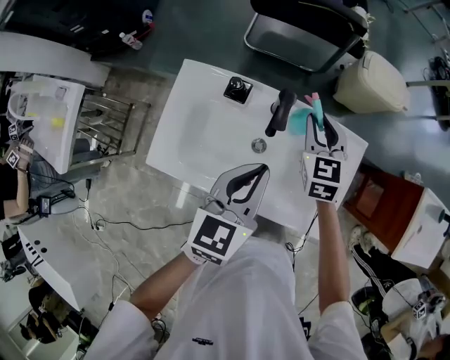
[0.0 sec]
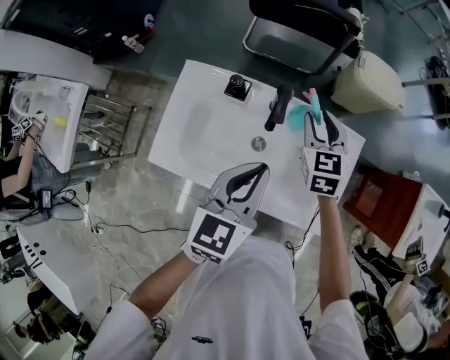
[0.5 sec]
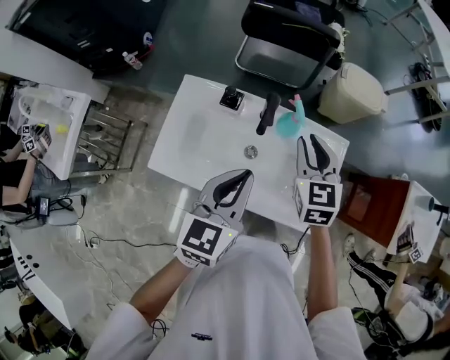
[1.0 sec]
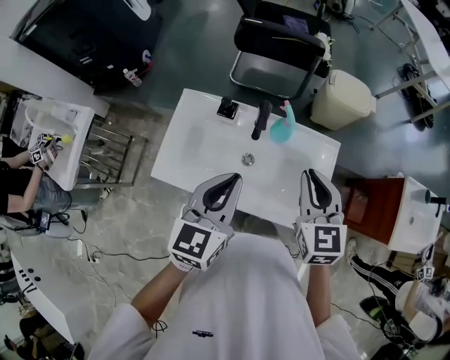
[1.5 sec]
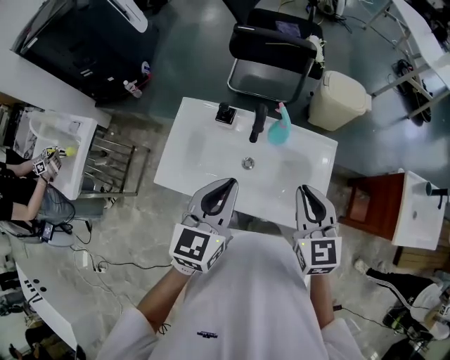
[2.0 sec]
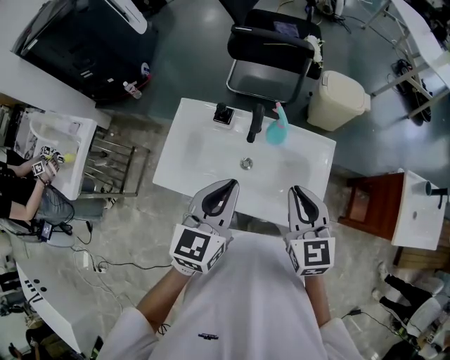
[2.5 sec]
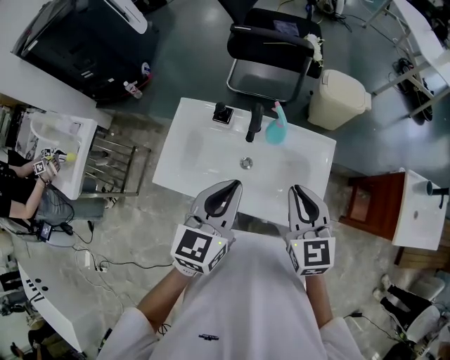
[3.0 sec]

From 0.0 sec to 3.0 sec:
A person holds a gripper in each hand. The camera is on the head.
From 0.0 sec to 1.5 sec: The right gripper heads backward and upward, covering approximately 25 cm. The left gripper is displaced upward and backward by approximately 10 cm.
From 1.5 sec to 3.0 sec: The grippers stay close to where they were, moving slightly.

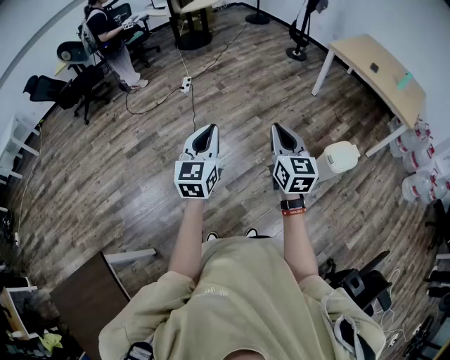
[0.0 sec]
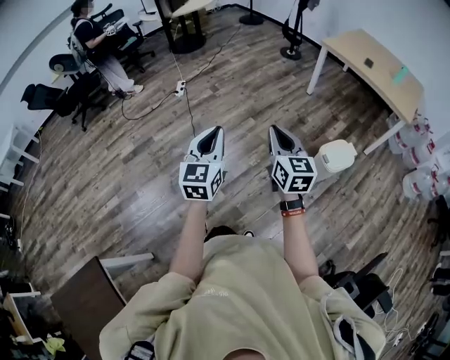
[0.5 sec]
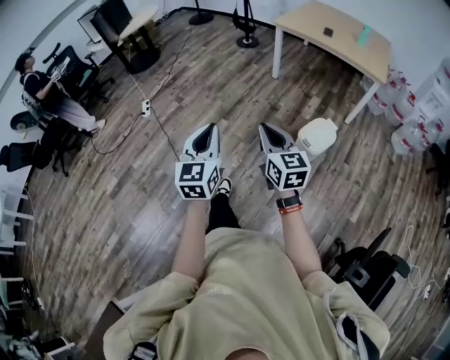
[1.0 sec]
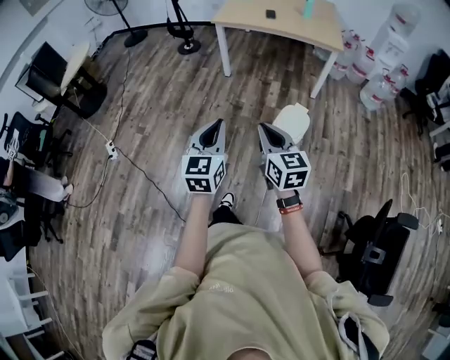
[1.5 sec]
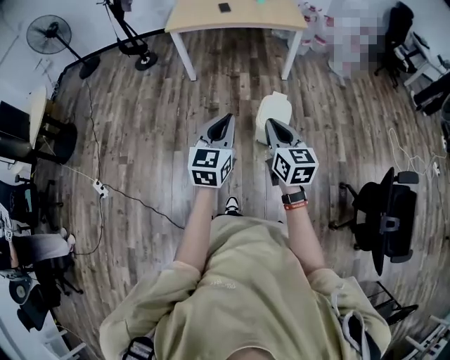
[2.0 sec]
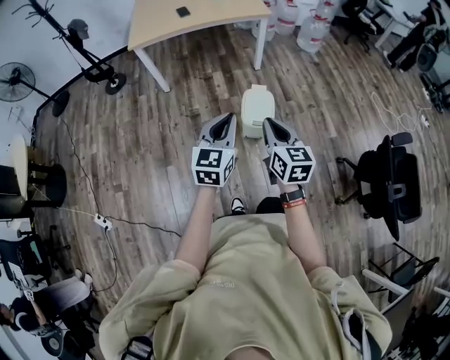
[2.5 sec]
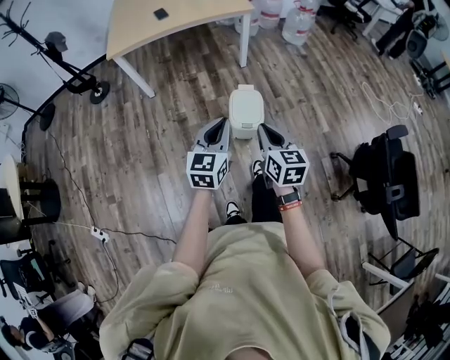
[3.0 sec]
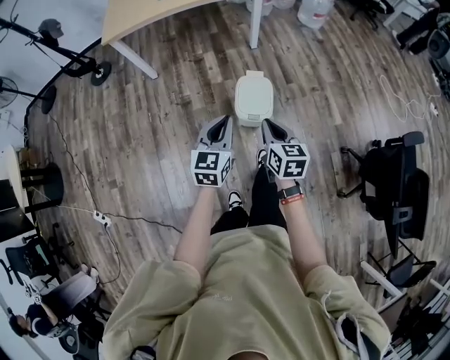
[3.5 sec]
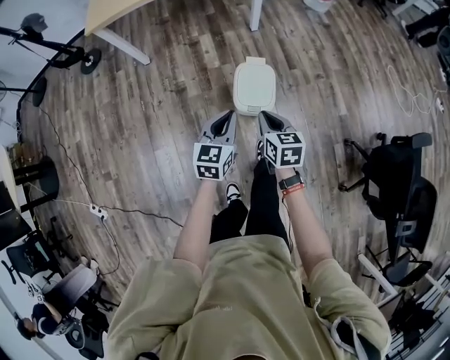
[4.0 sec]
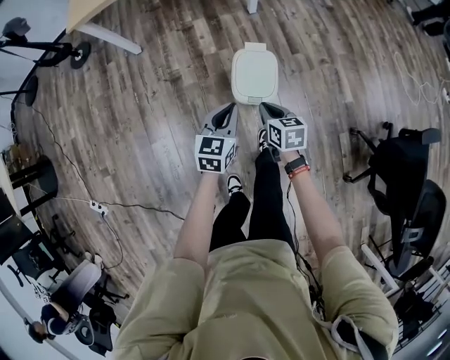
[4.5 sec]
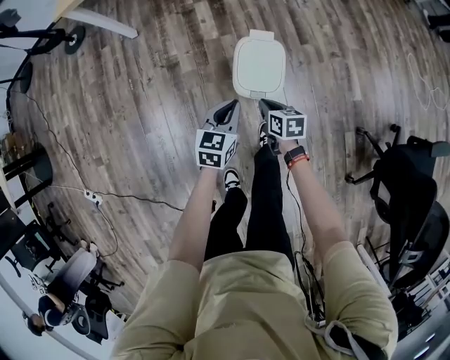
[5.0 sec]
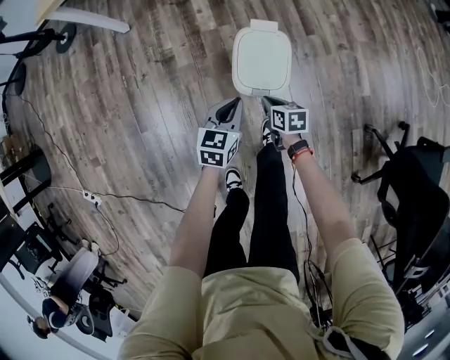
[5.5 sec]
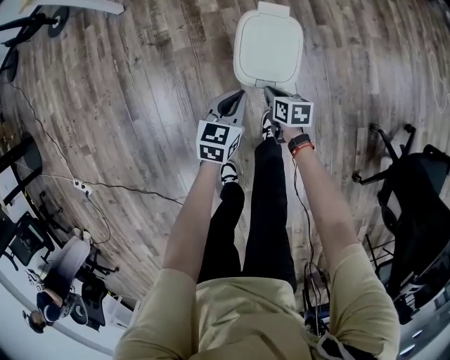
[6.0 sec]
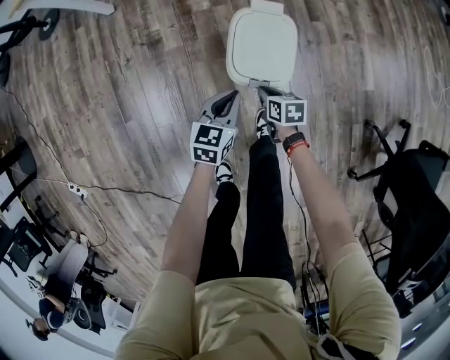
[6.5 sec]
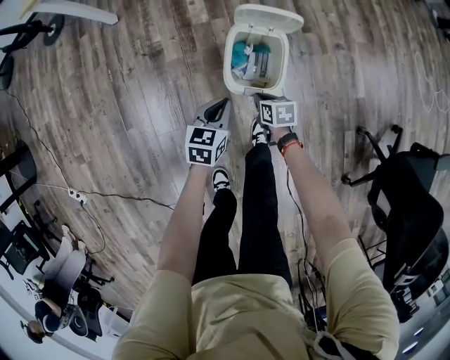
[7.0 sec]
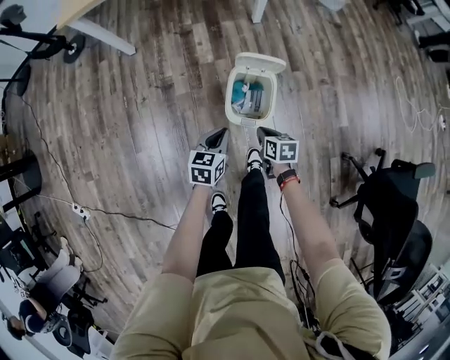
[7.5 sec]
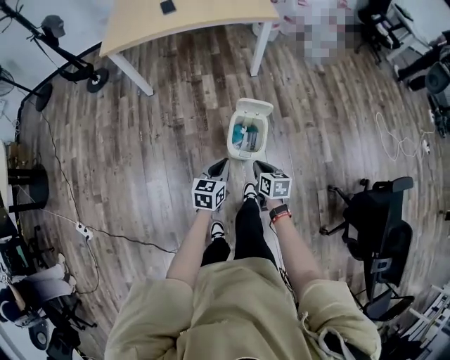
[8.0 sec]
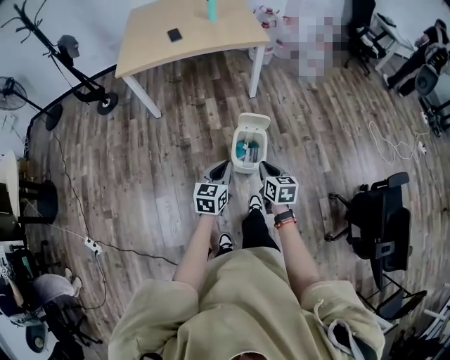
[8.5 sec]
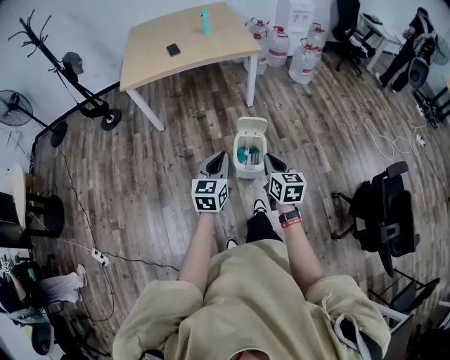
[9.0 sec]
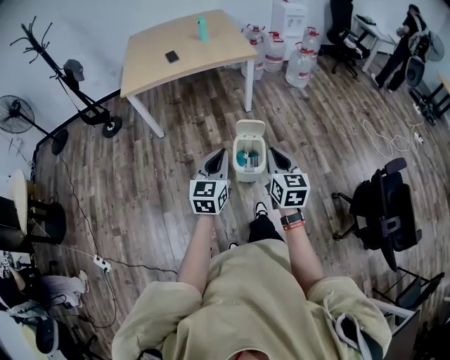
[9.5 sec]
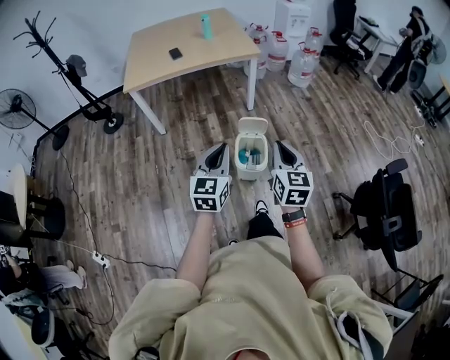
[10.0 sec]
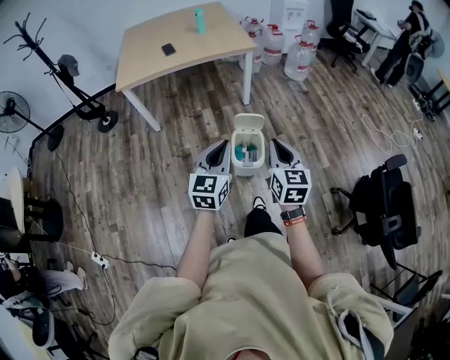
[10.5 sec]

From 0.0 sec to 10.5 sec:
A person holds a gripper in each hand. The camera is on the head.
From 0.0 sec to 2.0 sec: The pair of grippers is taken approximately 50 cm. The left gripper rotates roughly 60 degrees. Meanwhile the right gripper swivels approximately 50 degrees.
From 2.0 sec to 4.0 sec: The two grippers go some 40 cm downward and forward. The left gripper swivels roughly 20 degrees, while the right gripper changes its angle by about 30 degrees.
From 4.0 sec to 6.5 sec: The two grippers go roughly 50 cm downward. The right gripper swivels some 30 degrees.
From 6.5 sec to 8.5 sec: Both grippers travel together upward, about 60 cm. The right gripper changes its angle by about 30 degrees.
From 8.5 sec to 10.5 sec: Both grippers travel together upward and backward, approximately 20 cm. The right gripper turns by approximately 30 degrees.

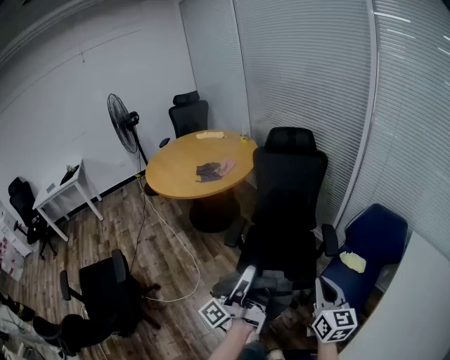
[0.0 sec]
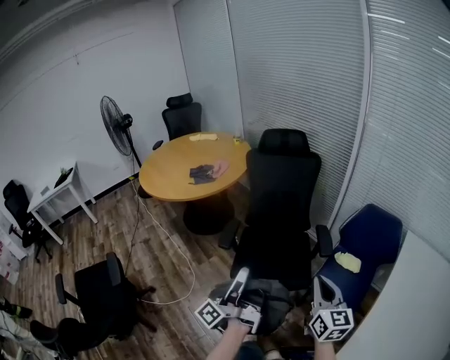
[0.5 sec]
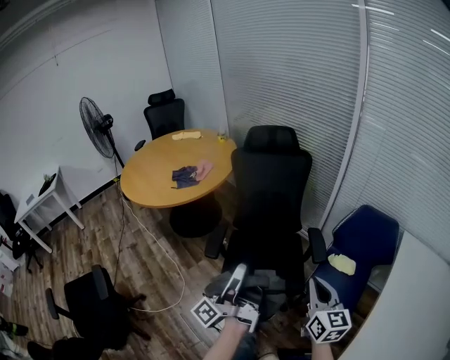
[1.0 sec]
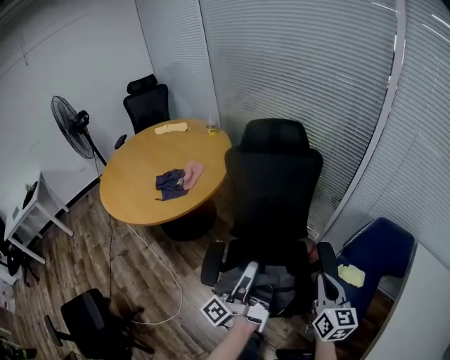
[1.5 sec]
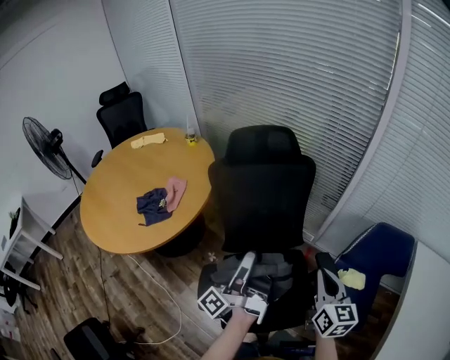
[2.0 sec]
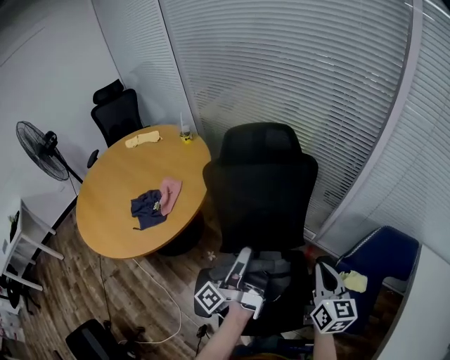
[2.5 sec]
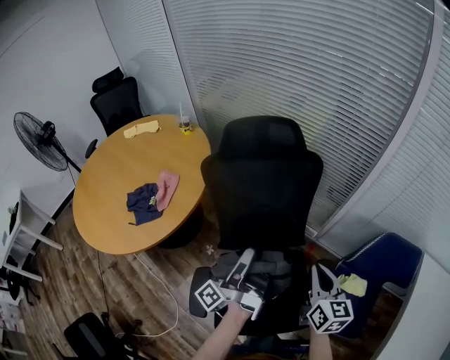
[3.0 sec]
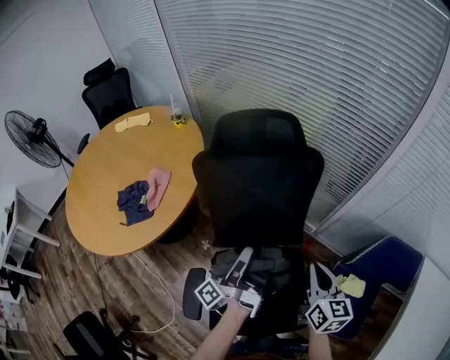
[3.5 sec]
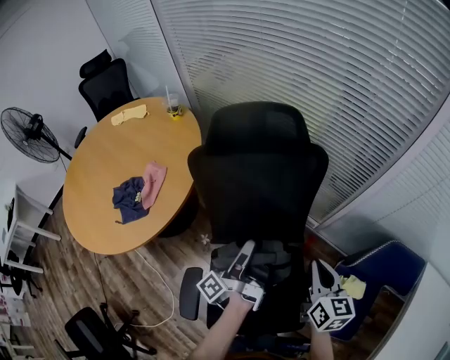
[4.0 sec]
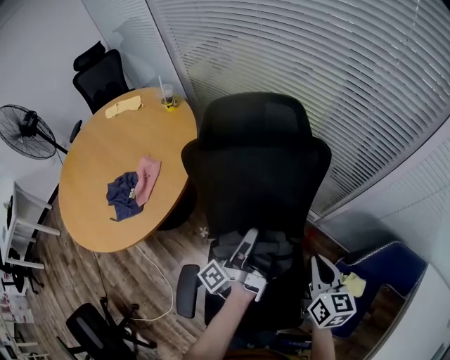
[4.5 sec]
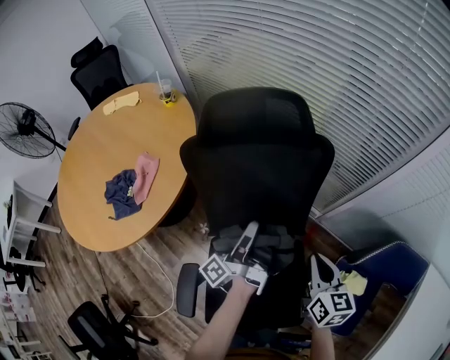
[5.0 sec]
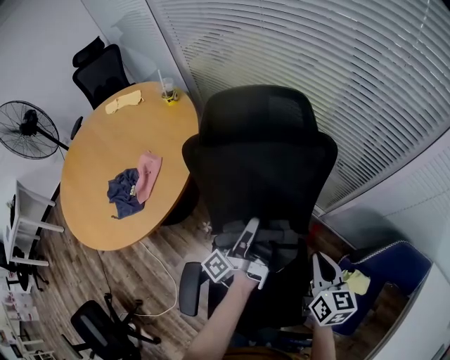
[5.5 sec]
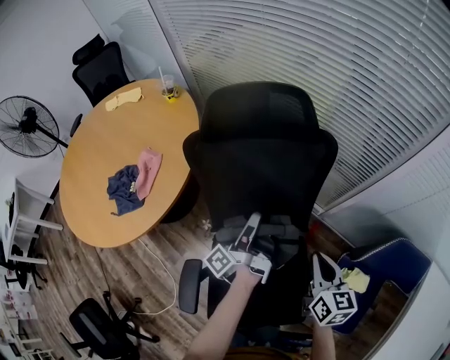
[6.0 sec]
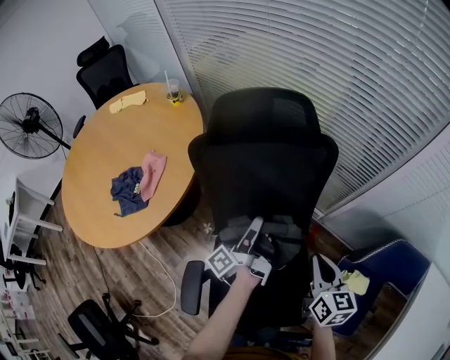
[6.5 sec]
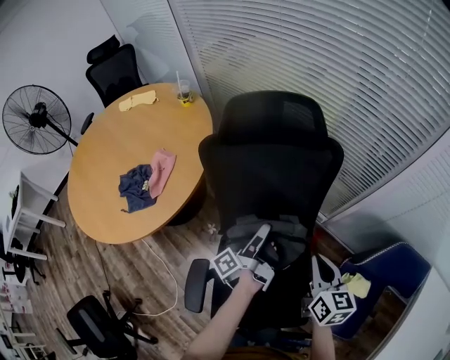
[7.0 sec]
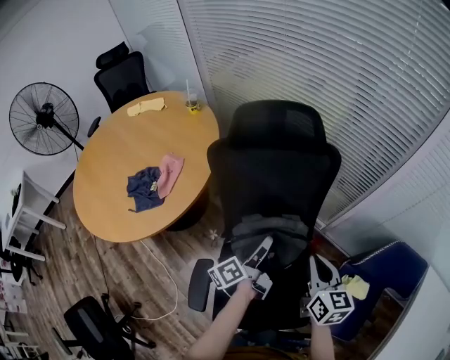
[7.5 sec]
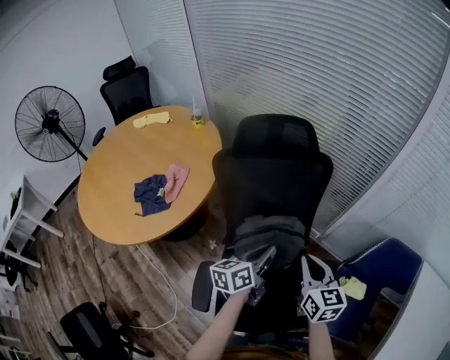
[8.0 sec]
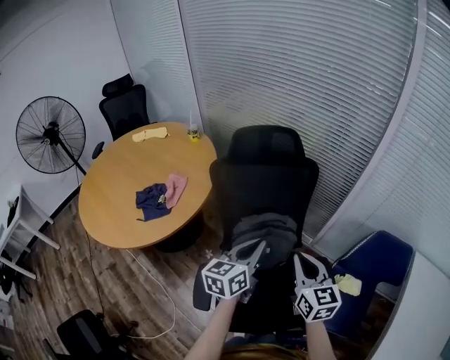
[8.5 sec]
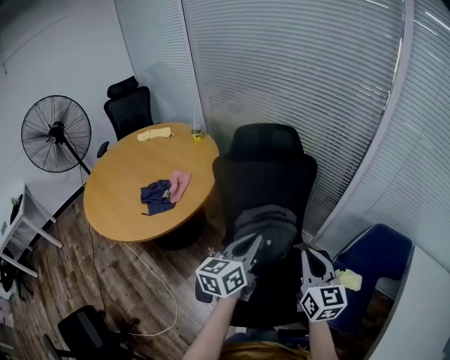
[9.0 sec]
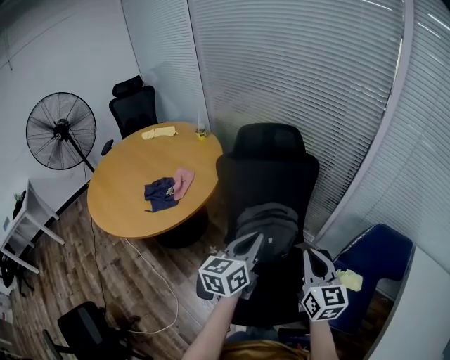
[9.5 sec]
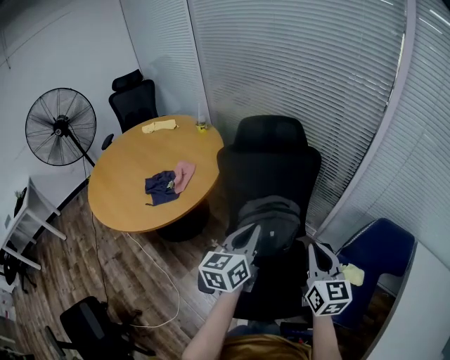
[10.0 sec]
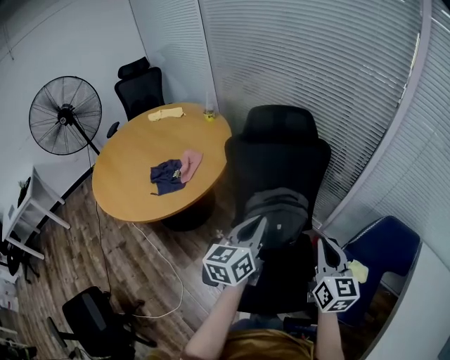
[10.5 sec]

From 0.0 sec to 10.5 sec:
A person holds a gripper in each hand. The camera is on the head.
From 0.0 sec to 2.0 sec: The right gripper changes place by roughly 40 cm.
From 2.0 sec to 4.0 sec: The right gripper shifts by some 20 cm.
From 6.5 sec to 8.5 sec: The right gripper changes place by about 20 cm.
From 8.5 sec to 10.5 sec: The right gripper ends up roughly 5 cm from where it was.

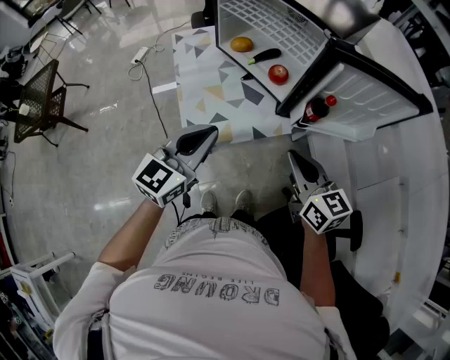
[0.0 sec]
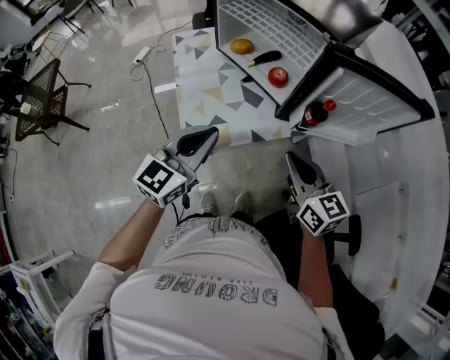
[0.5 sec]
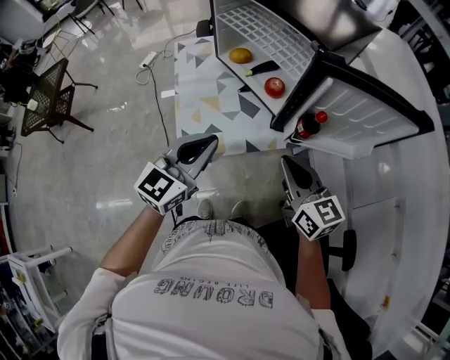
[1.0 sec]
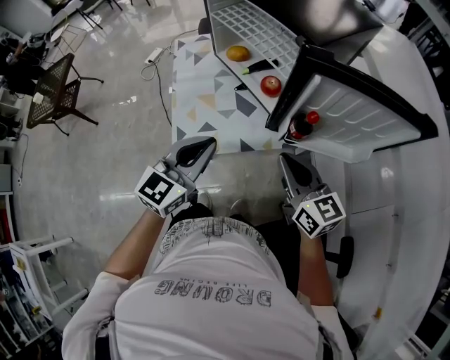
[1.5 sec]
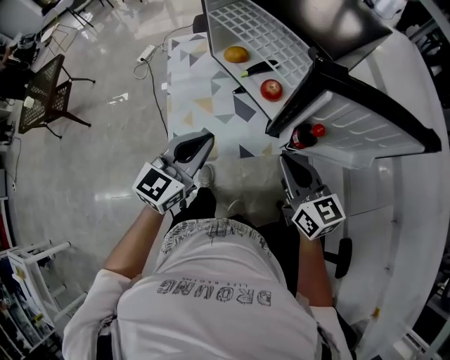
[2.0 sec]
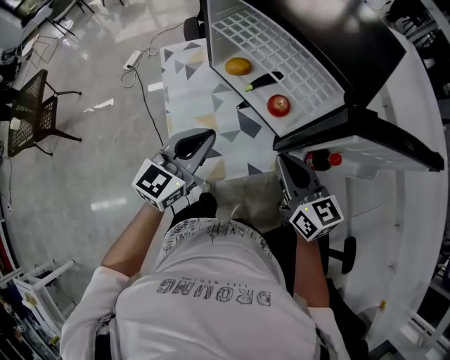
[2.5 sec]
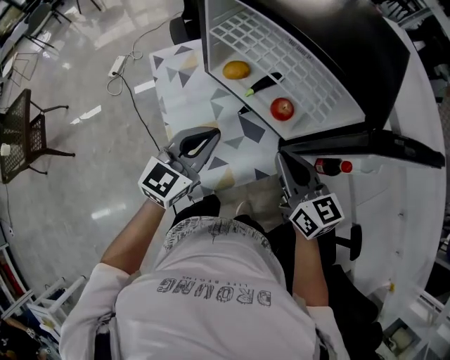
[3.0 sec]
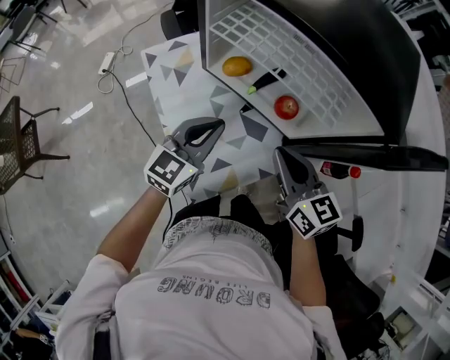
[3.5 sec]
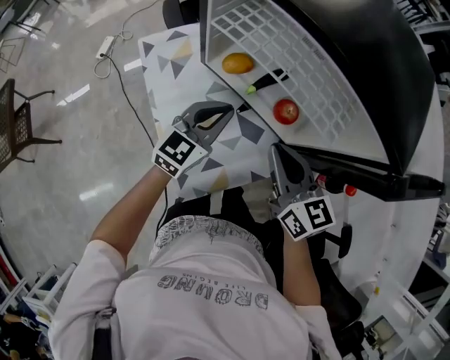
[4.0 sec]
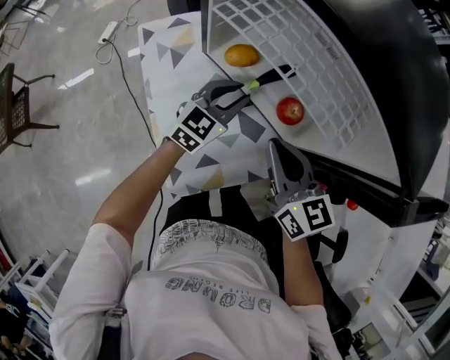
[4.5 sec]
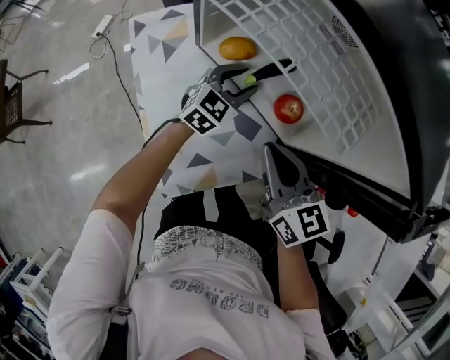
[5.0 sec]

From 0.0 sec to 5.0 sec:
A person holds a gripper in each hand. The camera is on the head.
From 0.0 sec to 2.5 sec: The two grippers go some 15 cm forward.
From 2.5 sec to 5.0 sec: The right gripper moves forward, downward and to the left, about 15 cm. Meanwhile the left gripper travels forward and downward by about 30 cm, swivels about 20 degrees, and opens.
